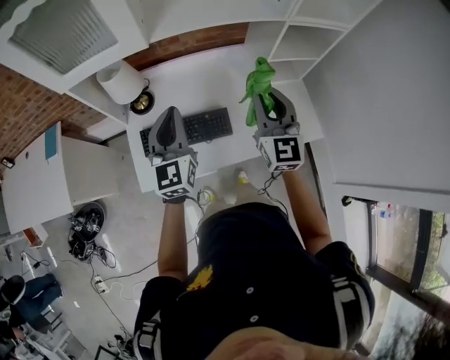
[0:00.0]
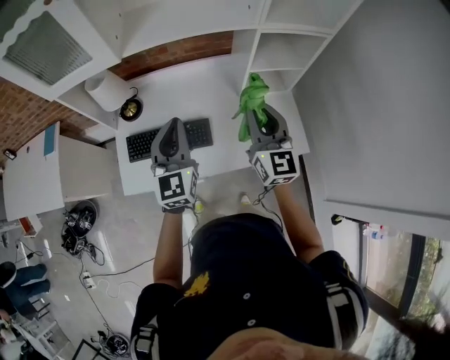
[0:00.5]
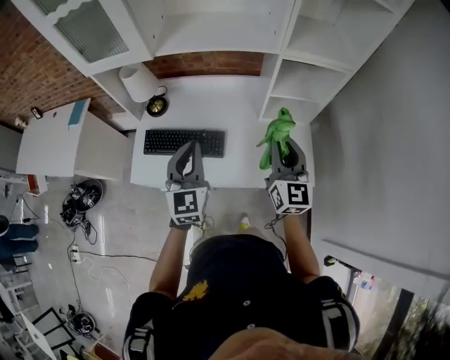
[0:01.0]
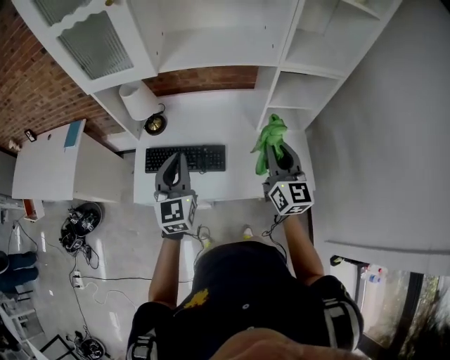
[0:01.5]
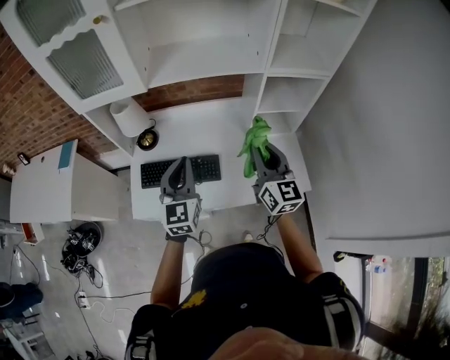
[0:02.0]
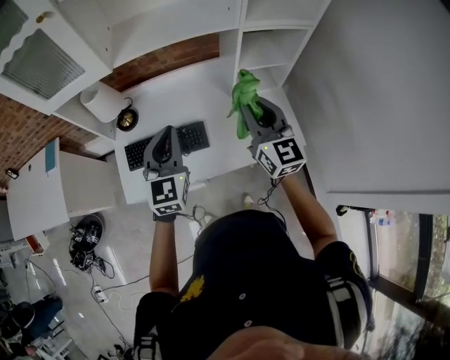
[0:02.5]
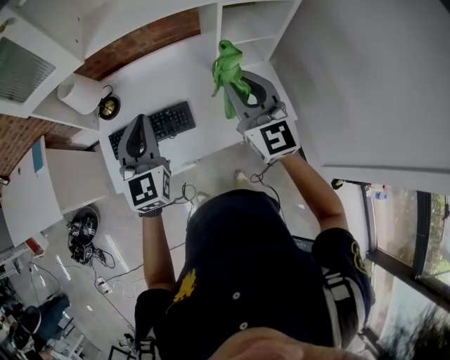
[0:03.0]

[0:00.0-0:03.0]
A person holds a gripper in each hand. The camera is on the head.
0:00.0 to 0:01.5: The right gripper moves to the right and backward, about 15 cm, and changes its angle by some 20 degrees; the left gripper goes approximately 10 cm backward and to the right.
0:01.5 to 0:03.0: The left gripper shifts by approximately 5 cm.

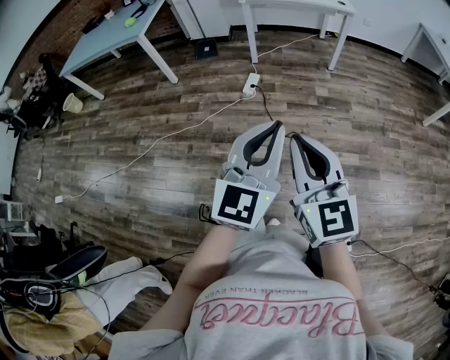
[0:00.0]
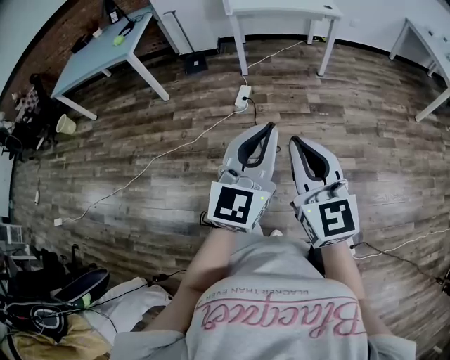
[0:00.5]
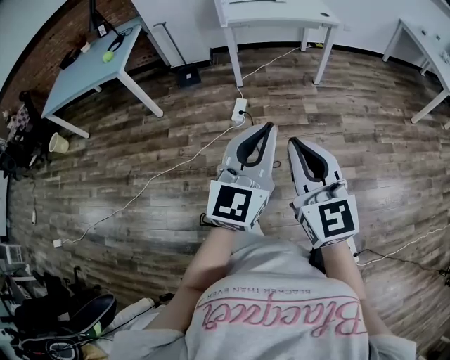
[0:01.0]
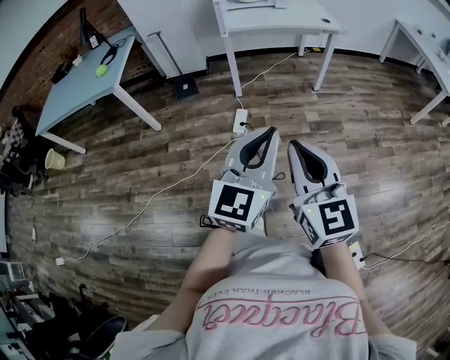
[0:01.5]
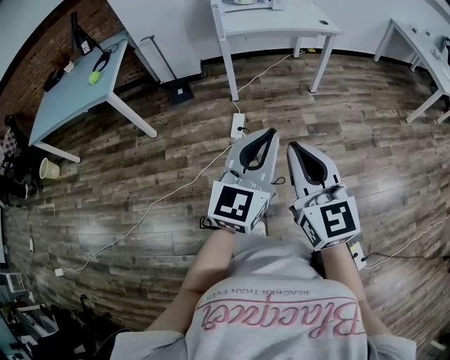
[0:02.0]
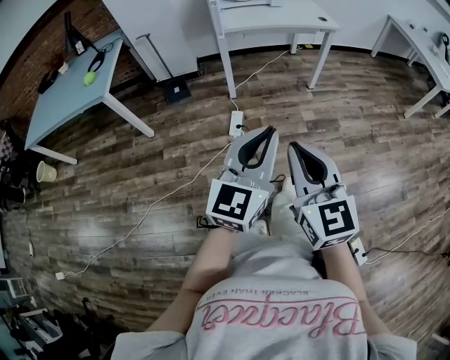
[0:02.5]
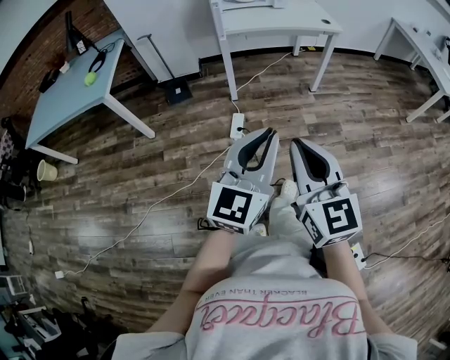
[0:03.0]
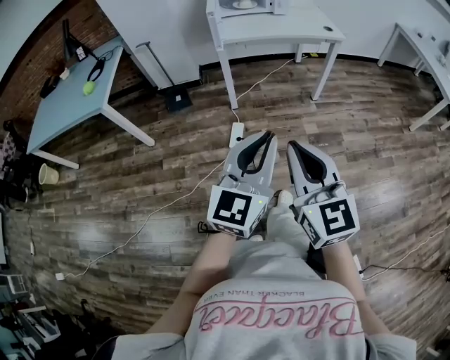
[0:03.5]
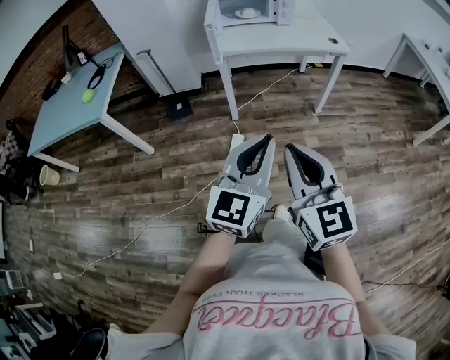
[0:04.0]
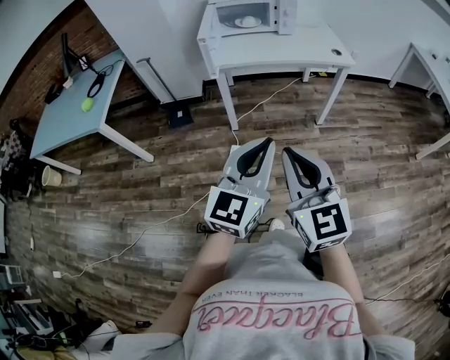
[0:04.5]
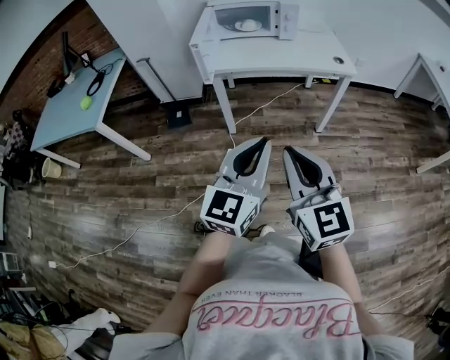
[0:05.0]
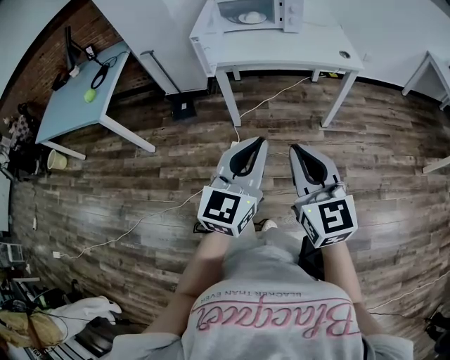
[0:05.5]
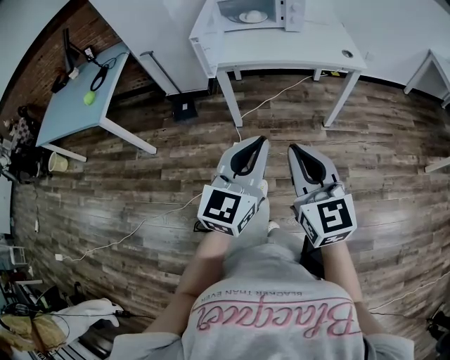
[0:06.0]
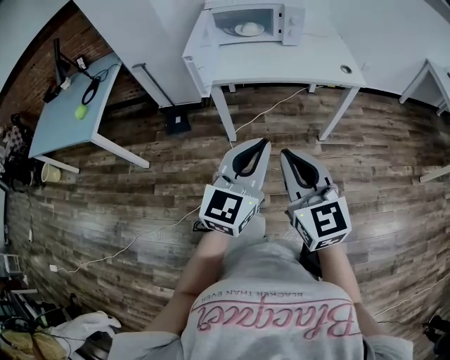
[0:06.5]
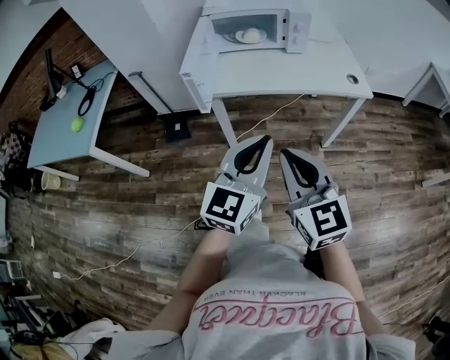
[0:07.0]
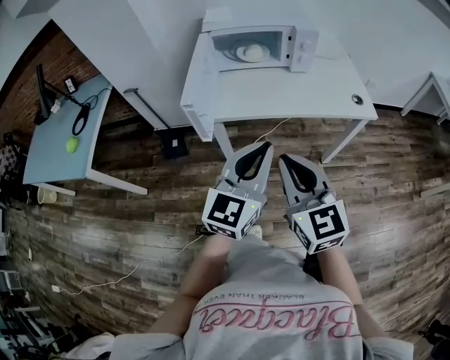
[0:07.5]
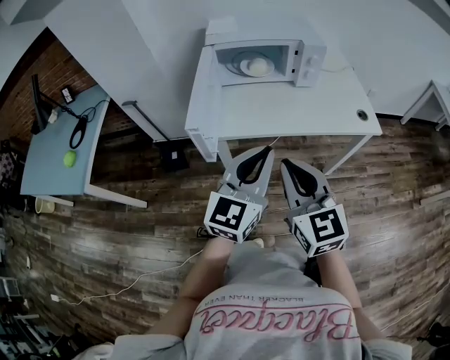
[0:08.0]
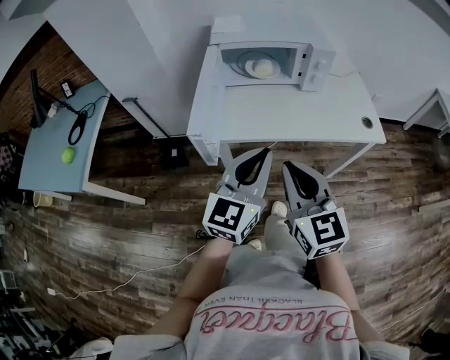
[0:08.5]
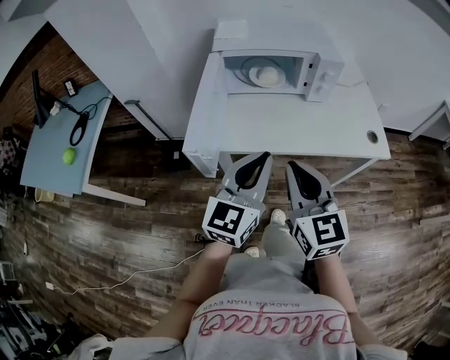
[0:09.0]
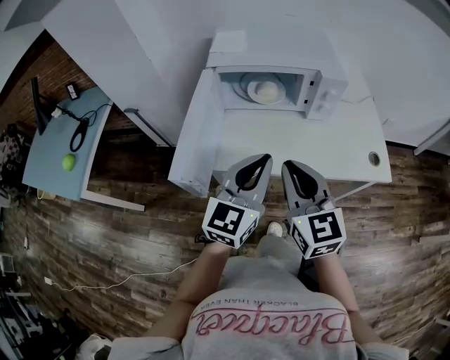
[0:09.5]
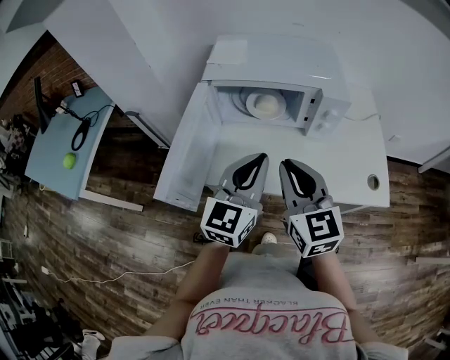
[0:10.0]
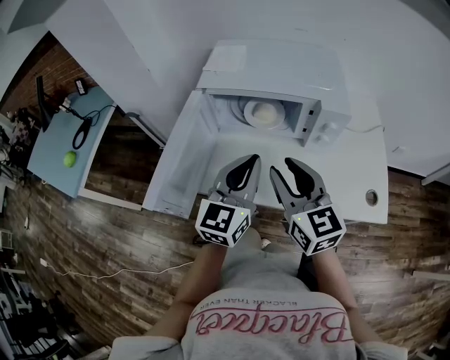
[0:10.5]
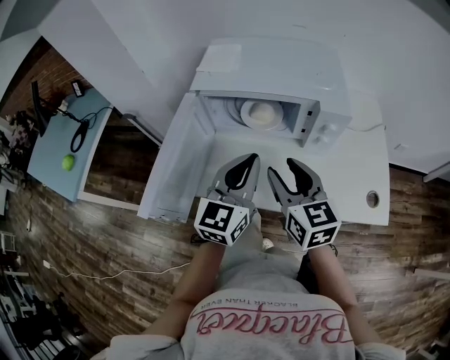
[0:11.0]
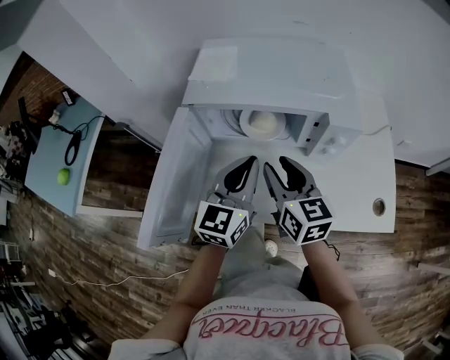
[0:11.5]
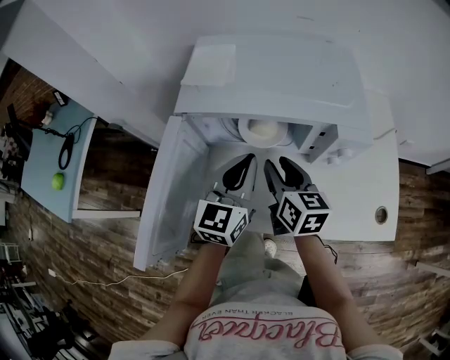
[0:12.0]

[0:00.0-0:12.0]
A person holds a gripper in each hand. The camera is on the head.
0:00.0 to 0:02.0: Both grippers travel together forward and to the left, approximately 25 cm.
0:02.0 to 0:04.0: The two grippers go roughly 20 cm forward.
0:04.0 to 0:06.0: The two grippers go about 15 cm forward and to the right.
0:06.0 to 0:08.0: Both grippers travel together forward, about 30 cm.
0:08.0 to 0:10.0: Both grippers move forward, about 20 cm.
0:10.0 to 0:12.0: The two grippers go approximately 20 cm forward and downward. The right gripper turns by approximately 30 degrees, and opens up.

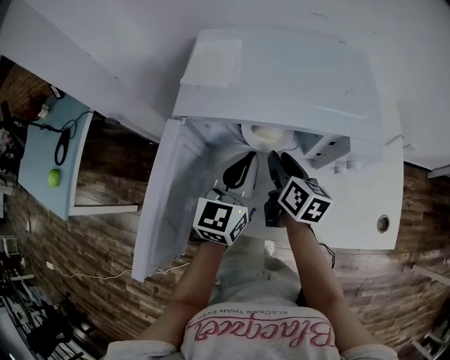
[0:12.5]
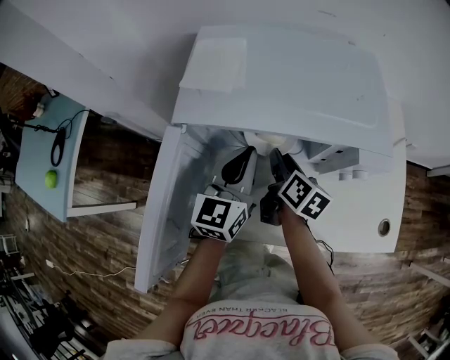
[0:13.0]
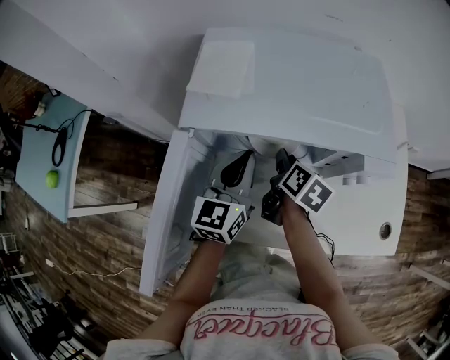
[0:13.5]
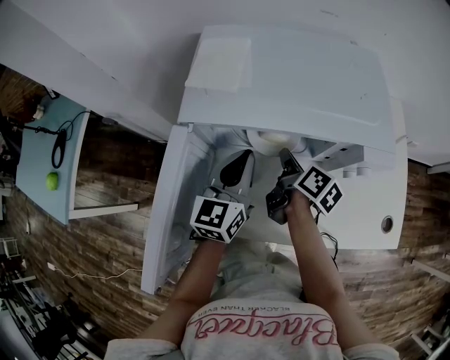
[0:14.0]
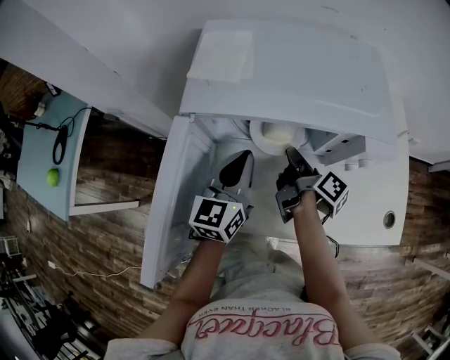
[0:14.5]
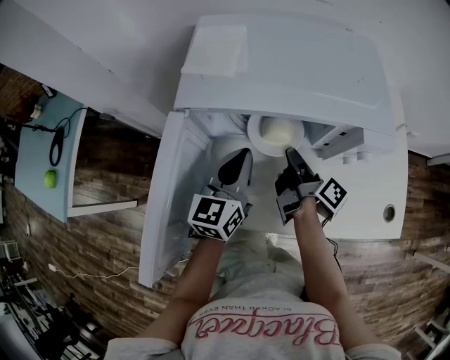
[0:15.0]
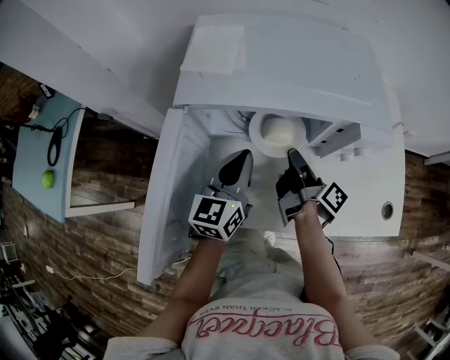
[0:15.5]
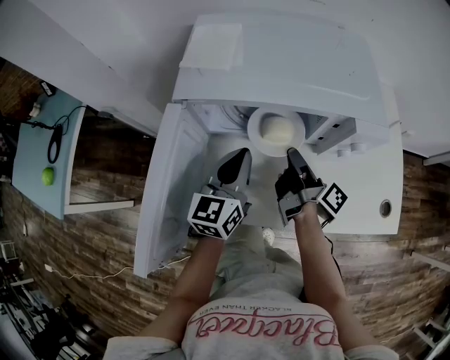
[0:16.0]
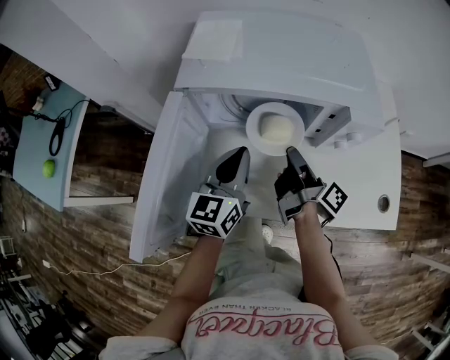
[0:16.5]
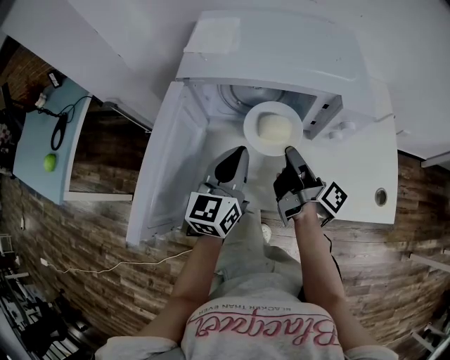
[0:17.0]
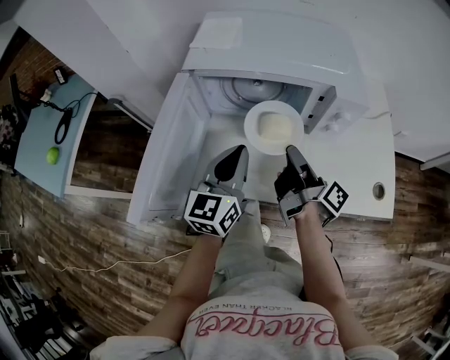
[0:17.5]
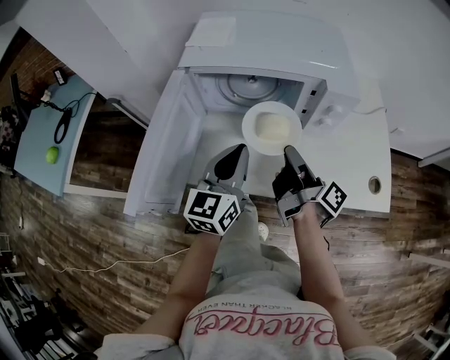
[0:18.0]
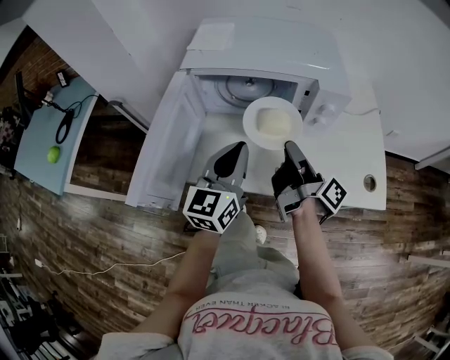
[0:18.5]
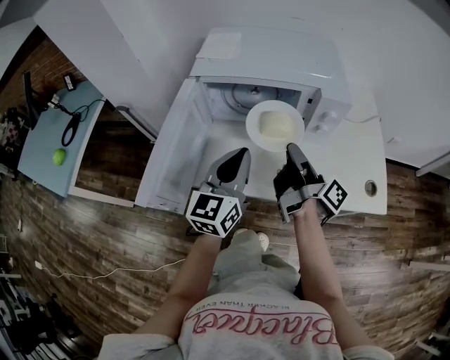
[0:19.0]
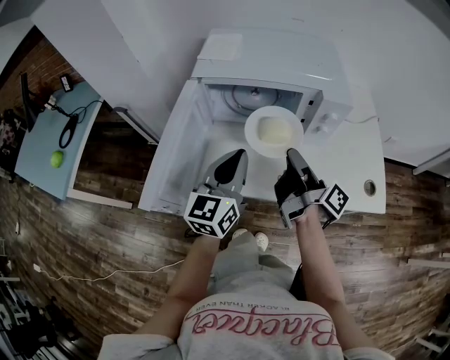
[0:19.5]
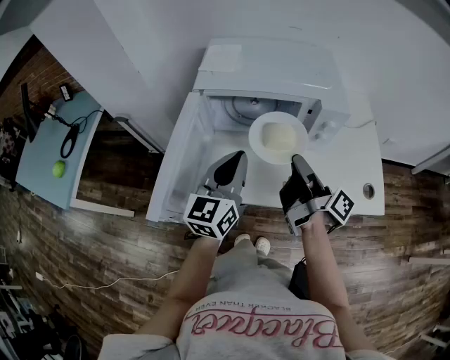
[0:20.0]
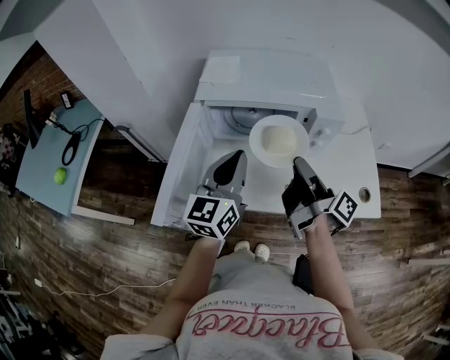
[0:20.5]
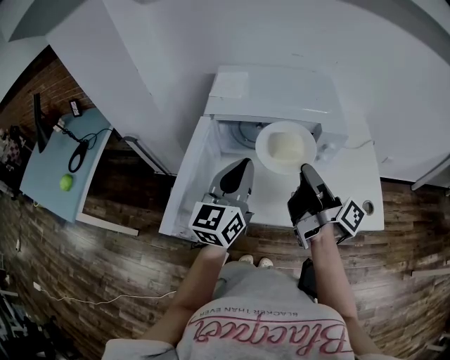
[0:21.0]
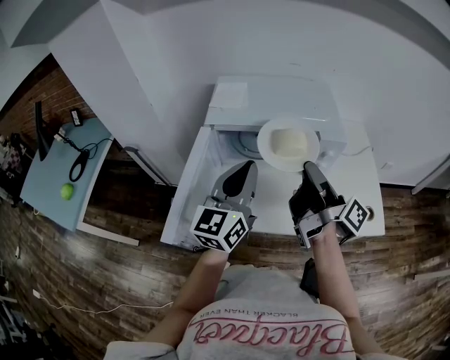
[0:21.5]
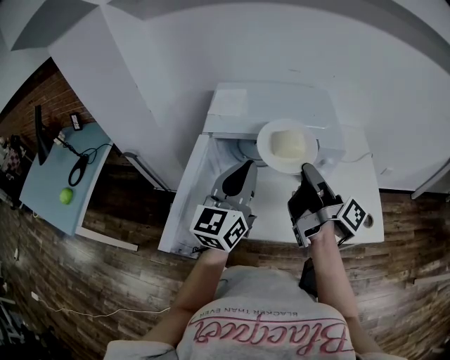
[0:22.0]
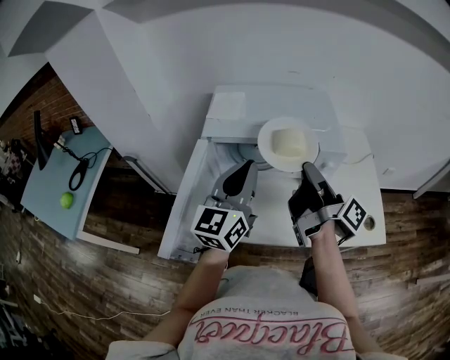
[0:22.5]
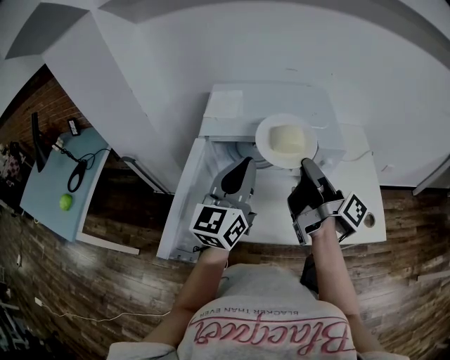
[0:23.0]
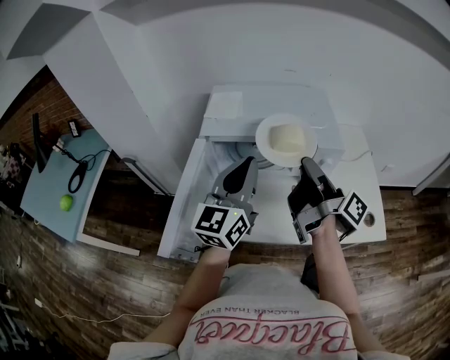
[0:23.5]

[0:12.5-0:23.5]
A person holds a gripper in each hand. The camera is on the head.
0:12.5 to 0:14.5: The right gripper twists about 50 degrees clockwise, seen from behind, and closes.
0:14.5 to 0:16.0: There are only small adjustments of the grippers.
0:16.0 to 0:18.0: The left gripper shifts some 10 cm backward; the right gripper moves backward and upward, some 10 cm.
0:18.0 to 0:20.0: Both grippers move upward, approximately 5 cm.
0:20.0 to 0:21.5: The two grippers go about 10 cm upward.
0:21.5 to 0:23.5: The grippers move only a little.

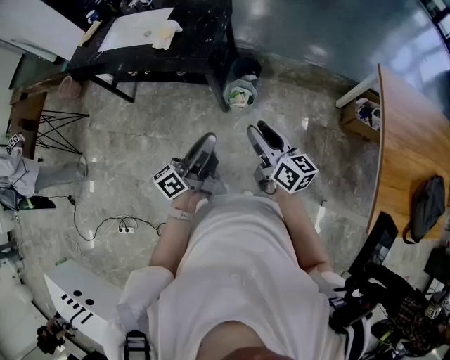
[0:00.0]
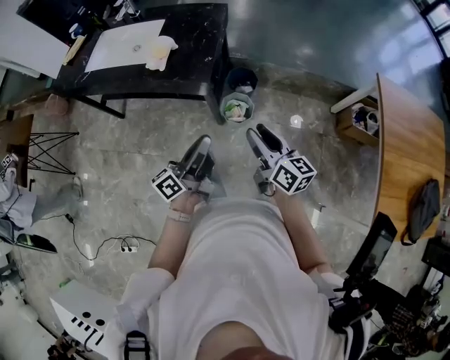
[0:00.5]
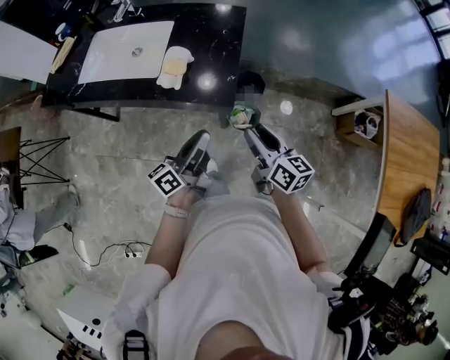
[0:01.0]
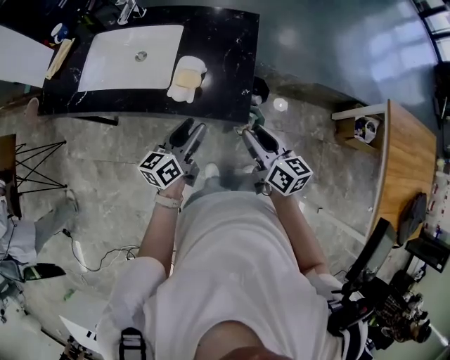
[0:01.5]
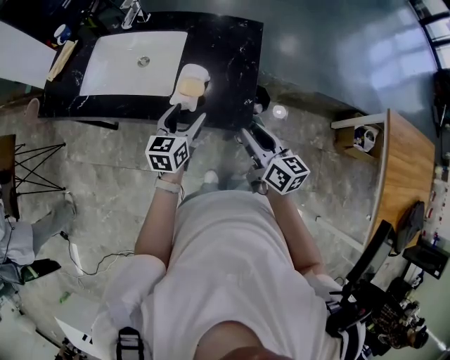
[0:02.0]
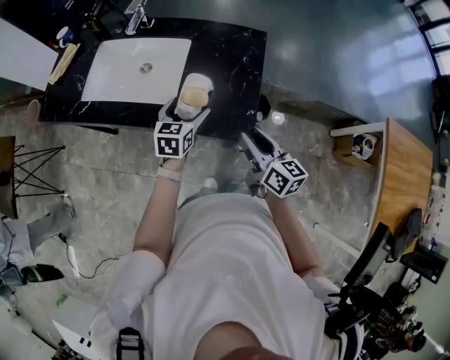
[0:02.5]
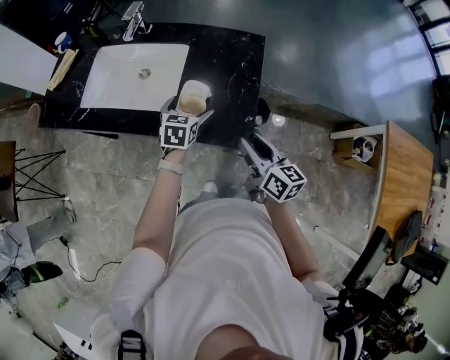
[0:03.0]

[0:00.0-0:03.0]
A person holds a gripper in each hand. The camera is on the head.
0:00.0 to 0:01.5: The two grippers travel together, forward and to the left, some 50 cm. The left gripper turns by about 20 degrees, and opens its fingers.
0:01.5 to 0:03.0: The right gripper heads forward, covering roughly 5 cm. The left gripper moves forward, approximately 15 cm, angles its fingers downward, by about 30 degrees, and opens up.
